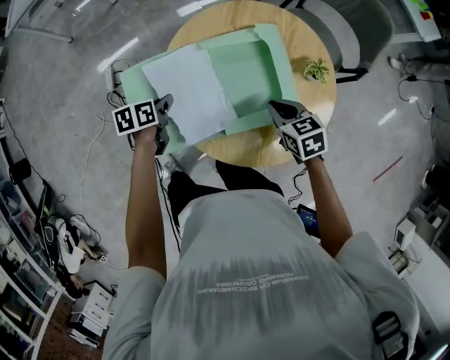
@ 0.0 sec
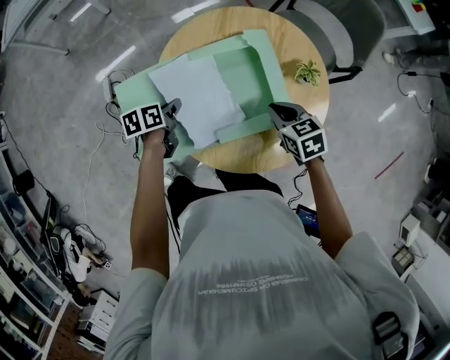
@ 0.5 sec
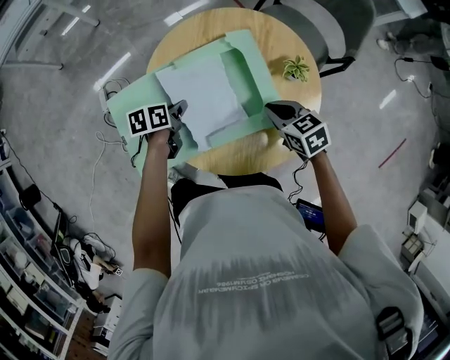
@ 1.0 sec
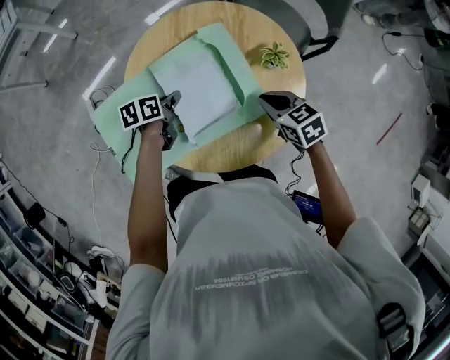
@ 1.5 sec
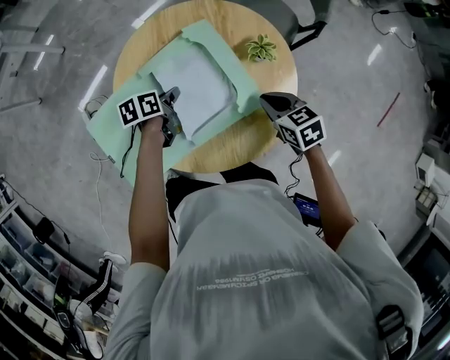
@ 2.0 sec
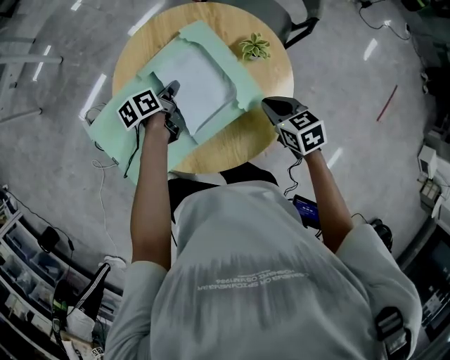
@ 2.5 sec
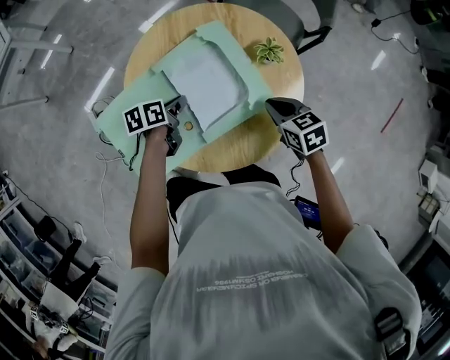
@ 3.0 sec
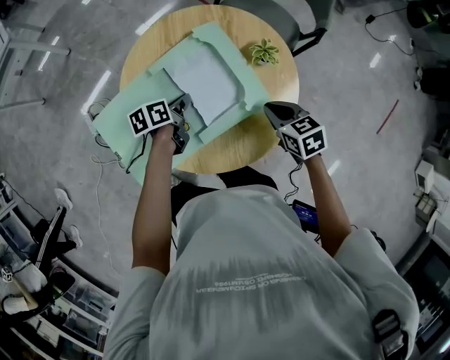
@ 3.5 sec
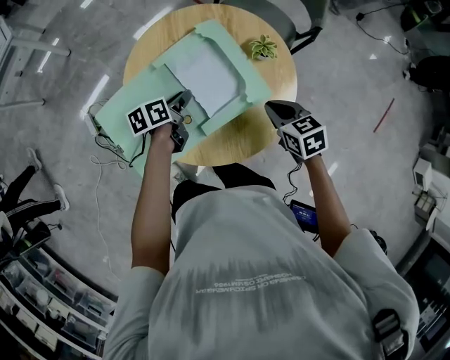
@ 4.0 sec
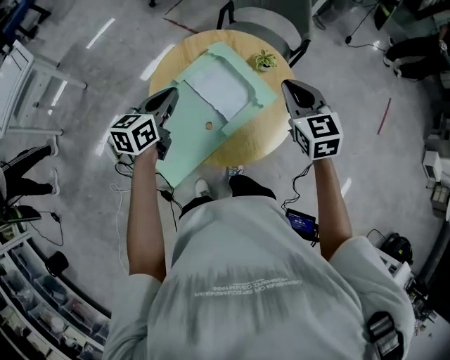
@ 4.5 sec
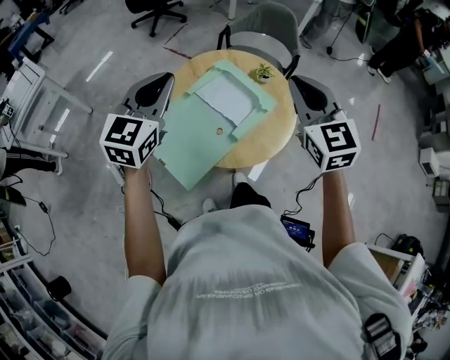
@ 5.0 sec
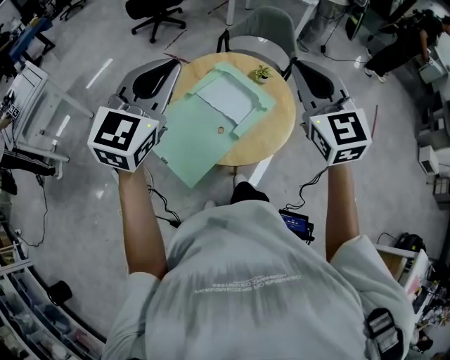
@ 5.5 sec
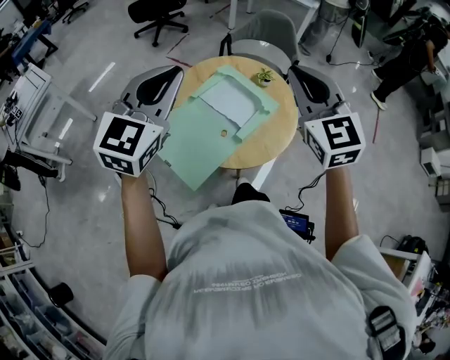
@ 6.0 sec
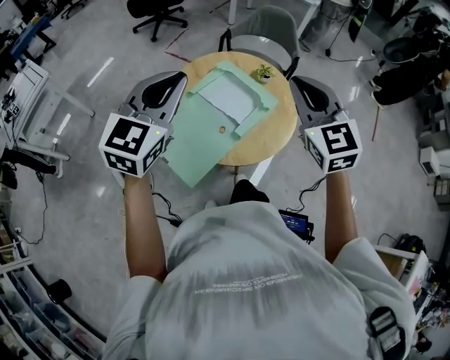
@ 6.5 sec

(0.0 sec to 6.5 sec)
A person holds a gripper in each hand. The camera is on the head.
0.0 sec - 2.0 sec: The left gripper goes about 20 cm to the right and forward. Meanwhile the right gripper travels to the right by about 10 cm.
2.0 sec - 4.5 sec: The two grippers go some 25 cm upward. The left gripper changes its angle by about 40 degrees, and opens and closes again; the right gripper rotates some 40 degrees.
4.5 sec - 6.5 sec: The two grippers go approximately 20 cm upward and backward. The left gripper rolls clockwise, seen from behind, by approximately 40 degrees.

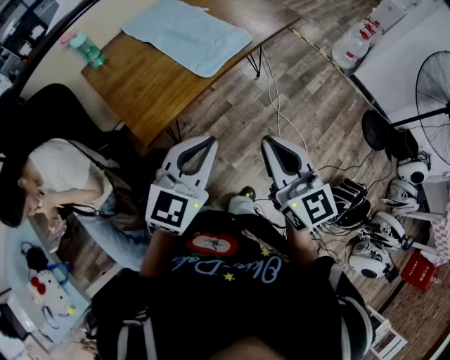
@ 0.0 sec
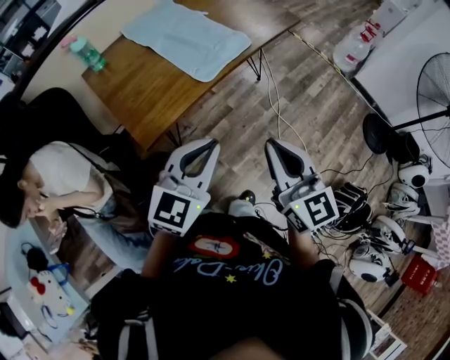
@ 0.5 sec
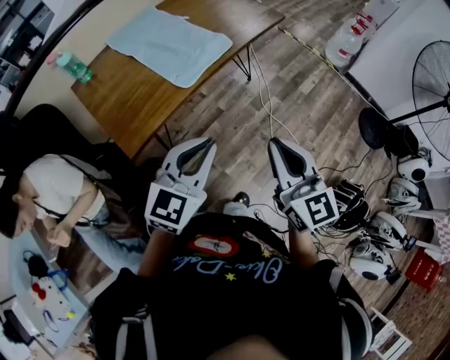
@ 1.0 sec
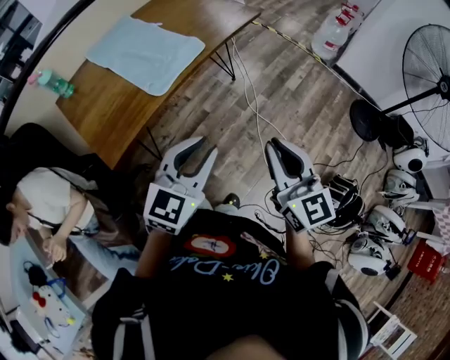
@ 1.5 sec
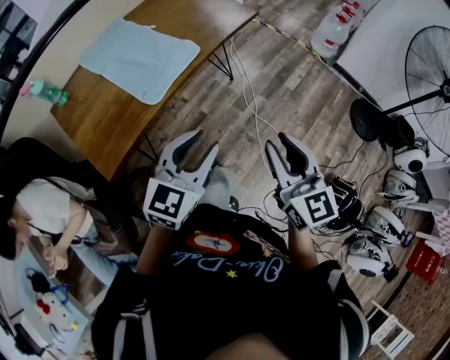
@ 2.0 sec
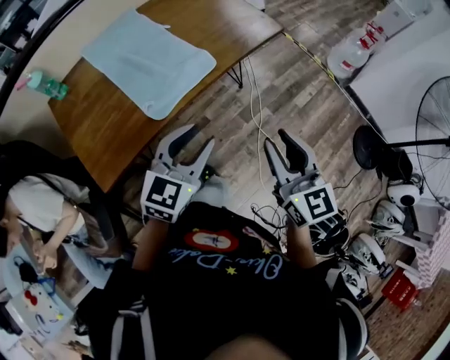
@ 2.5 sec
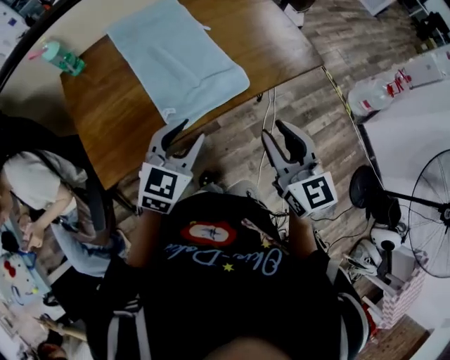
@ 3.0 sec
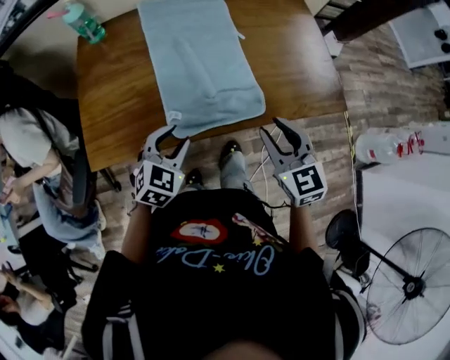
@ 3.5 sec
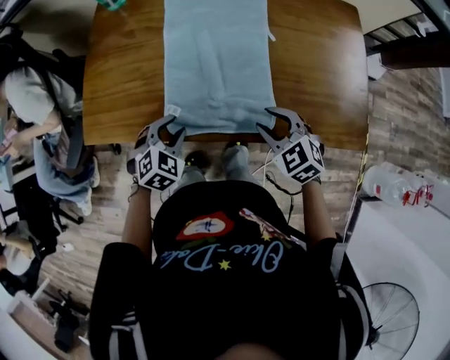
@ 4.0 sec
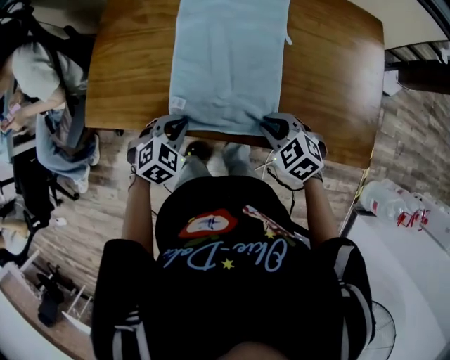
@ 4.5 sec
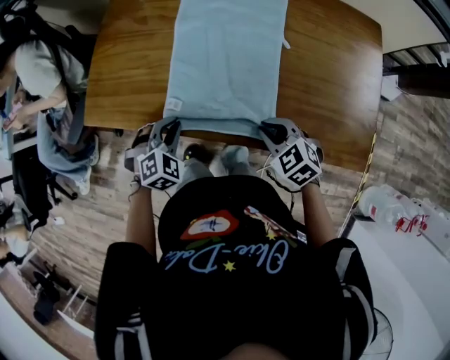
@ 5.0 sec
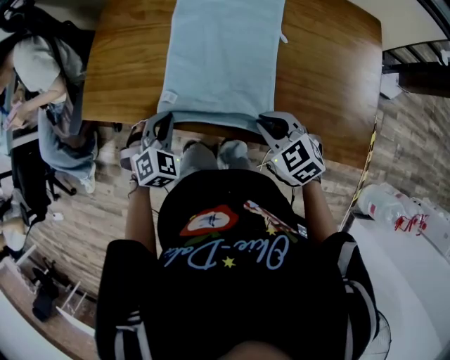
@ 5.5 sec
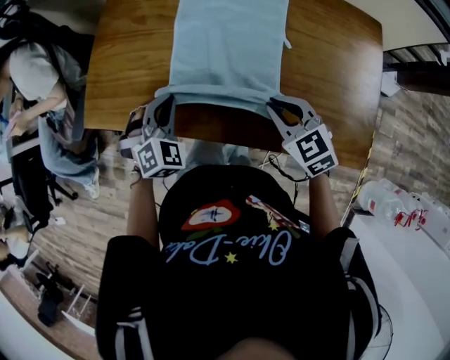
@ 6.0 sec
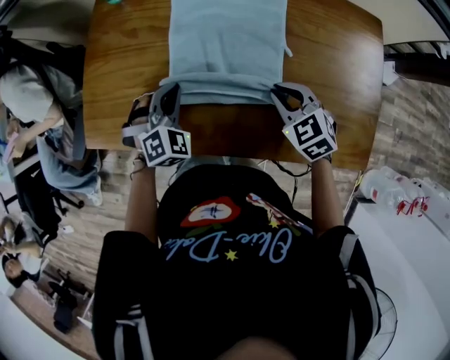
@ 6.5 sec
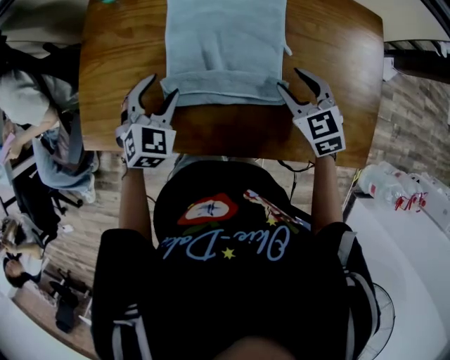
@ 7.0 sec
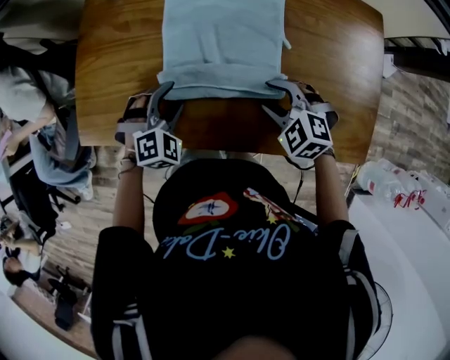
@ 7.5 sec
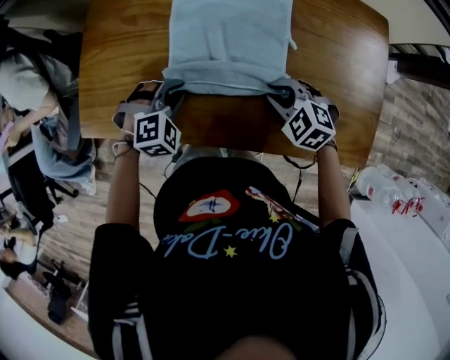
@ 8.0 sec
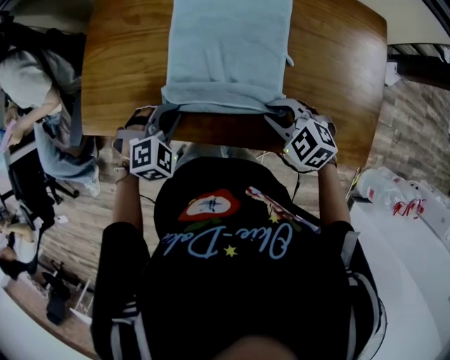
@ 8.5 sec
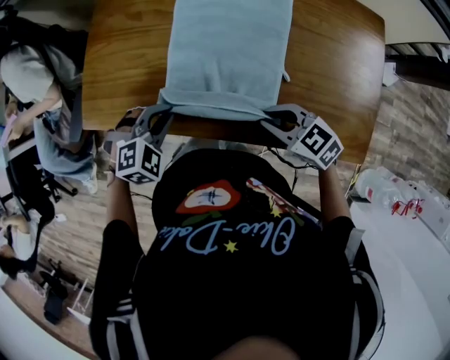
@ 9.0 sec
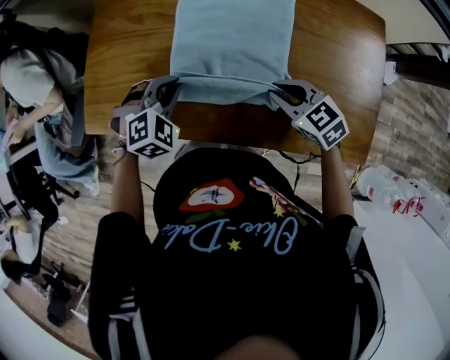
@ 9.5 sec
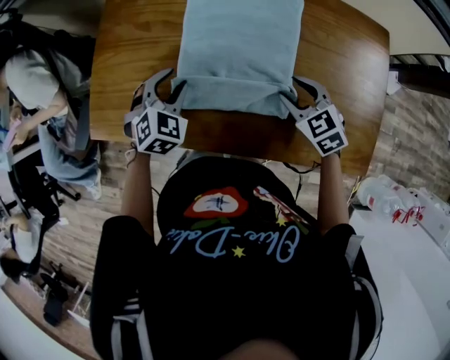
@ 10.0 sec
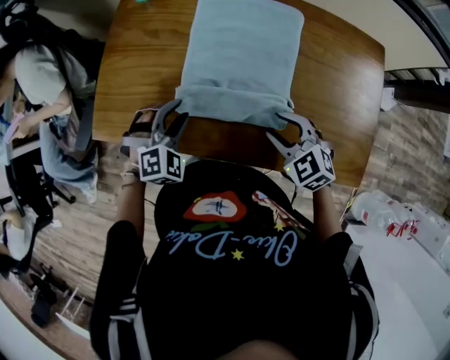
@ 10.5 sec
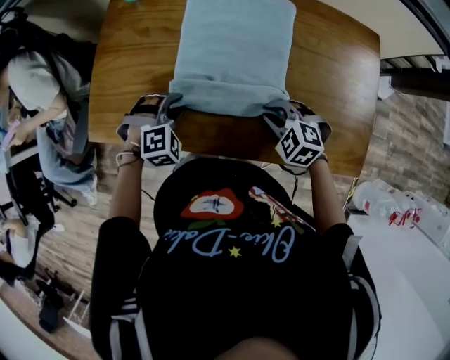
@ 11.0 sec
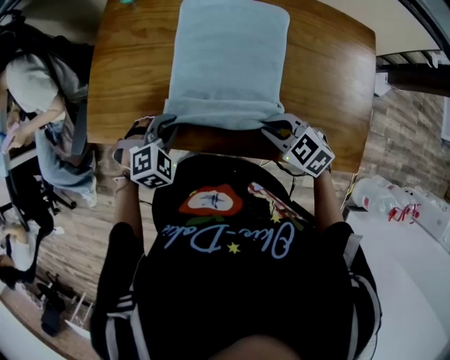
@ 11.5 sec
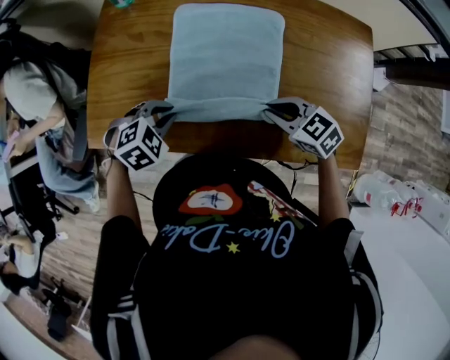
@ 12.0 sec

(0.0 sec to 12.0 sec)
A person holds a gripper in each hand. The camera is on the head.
0.0 sec - 2.0 sec: Both grippers move to the right and forward, roughly 20 cm. The left gripper opens.
2.0 sec - 4.0 sec: The right gripper ends up some 50 cm from where it was, and tilts its fingers roughly 40 degrees downward. The left gripper changes place by roughly 40 cm, and angles its fingers downward, by approximately 40 degrees.
4.0 sec - 6.0 sec: The grippers both shift forward by roughly 5 cm. The left gripper rotates some 20 degrees, and closes up; the right gripper closes up.
6.0 sec - 8.0 sec: Both grippers move downward, approximately 5 cm. The right gripper rotates about 30 degrees, and opens and closes again; the left gripper goes forward and returns, about 10 cm each way, swivels roughly 30 degrees, and opens and closes again.
8.0 sec - 10.0 sec: The left gripper is displaced forward by about 5 cm, rotates some 30 degrees, and opens up. The right gripper moves some 10 cm backward and comes back, swivels approximately 20 degrees, and opens its fingers.
10.0 sec - 12.0 sec: The left gripper travels backward by about 5 cm, swivels approximately 30 degrees, and closes up. Meanwhile the right gripper turns by approximately 20 degrees, and closes up.

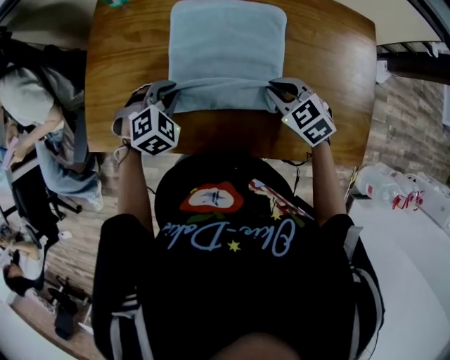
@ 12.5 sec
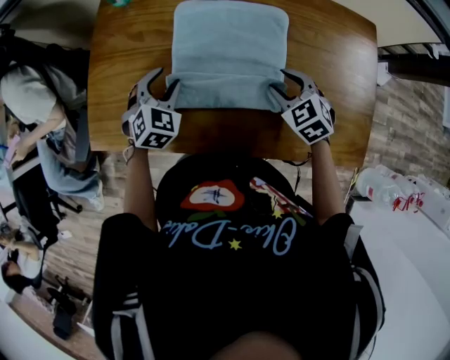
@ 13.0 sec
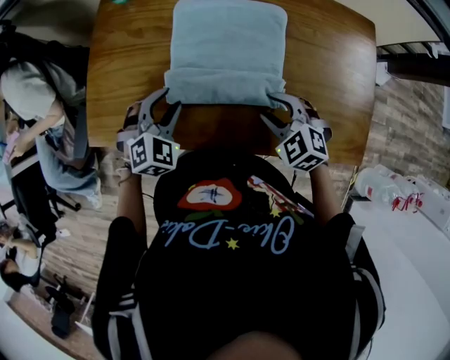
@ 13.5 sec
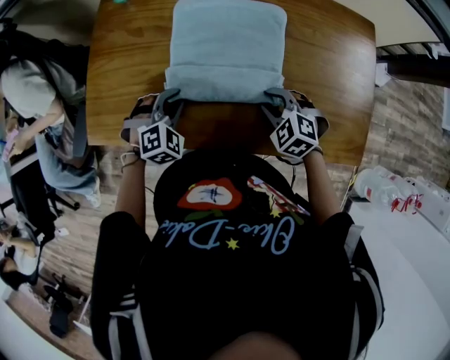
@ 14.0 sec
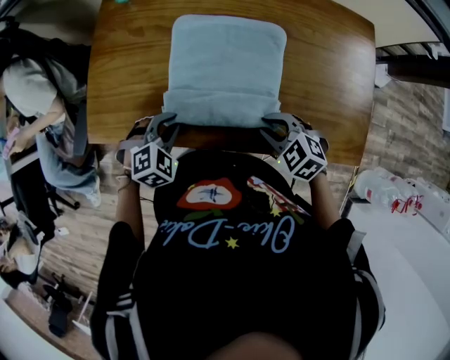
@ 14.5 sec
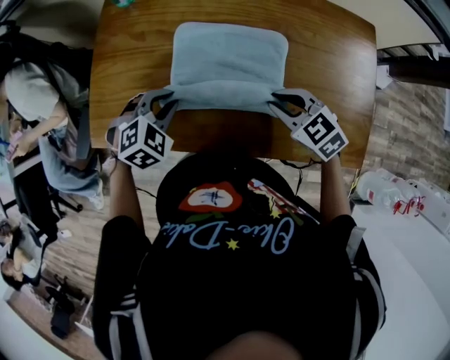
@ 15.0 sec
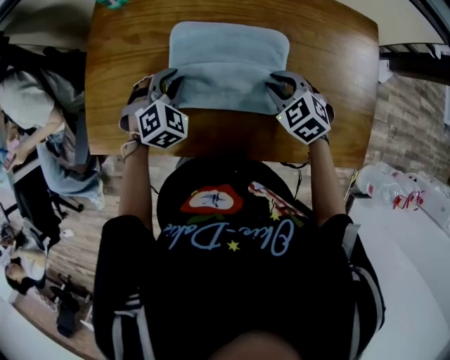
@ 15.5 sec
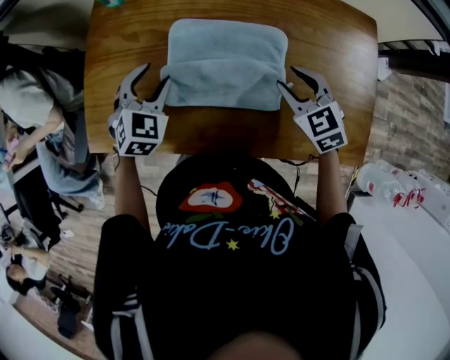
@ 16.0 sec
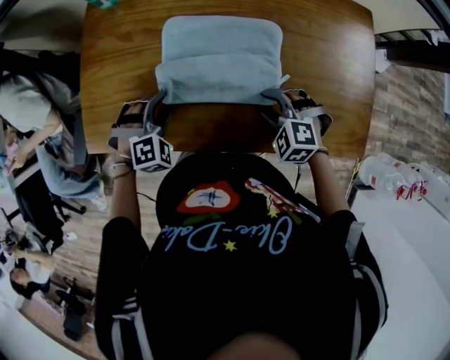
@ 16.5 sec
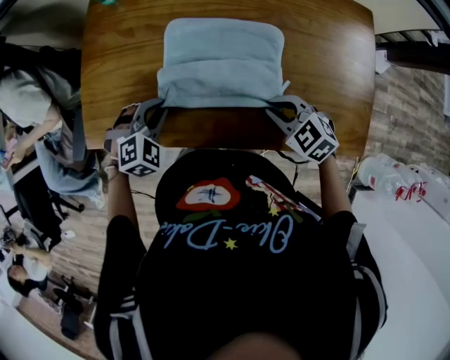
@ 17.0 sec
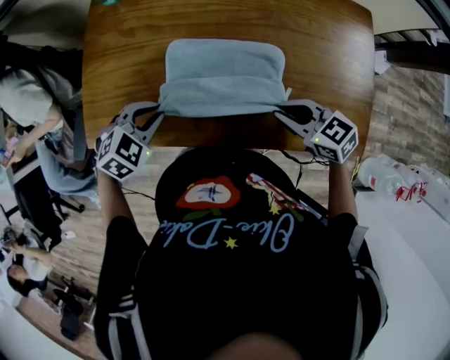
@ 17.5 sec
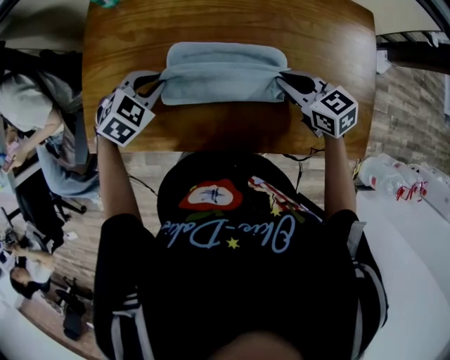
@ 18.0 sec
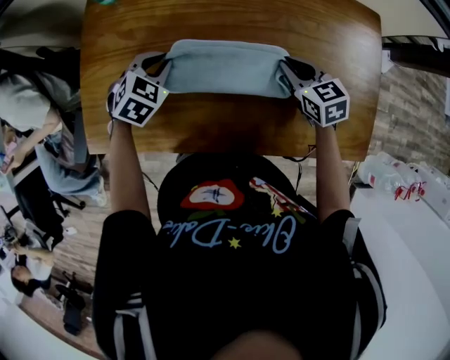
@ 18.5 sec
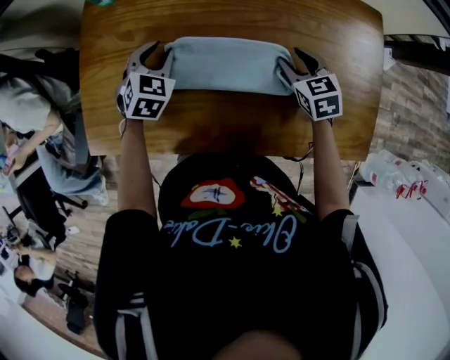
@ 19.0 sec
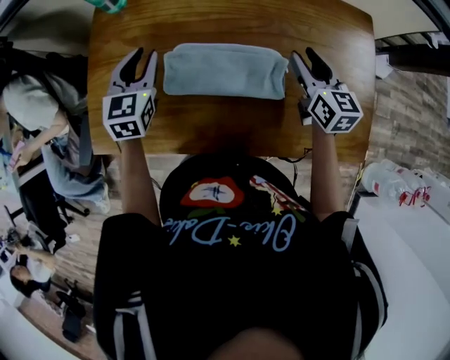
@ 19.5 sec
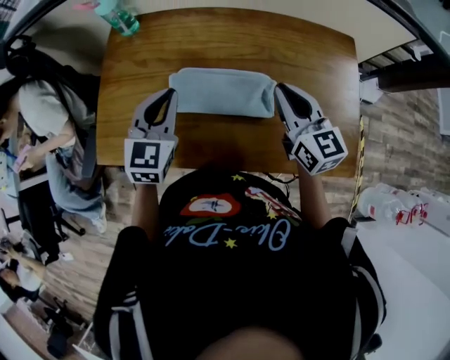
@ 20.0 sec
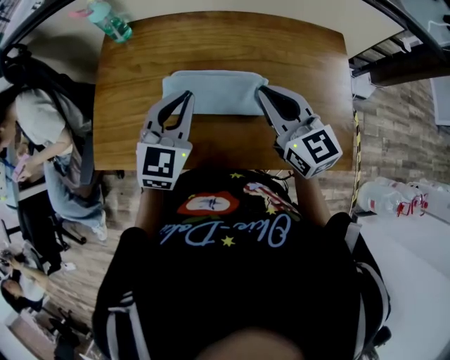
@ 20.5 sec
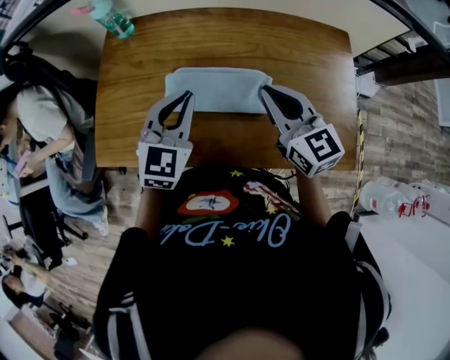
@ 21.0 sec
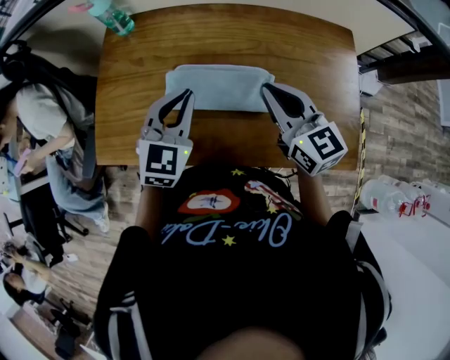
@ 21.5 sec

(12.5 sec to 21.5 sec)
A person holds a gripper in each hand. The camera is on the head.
12.5 sec - 14.5 sec: The grippers both shift backward by approximately 10 cm. The right gripper opens, then closes once more, while the left gripper opens and closes again.
14.5 sec - 17.0 sec: The left gripper moves approximately 15 cm forward and comes back, and opens, then closes again, while the right gripper moves some 15 cm forward and comes back.
17.0 sec - 19.5 sec: The left gripper goes approximately 20 cm forward and upward, and angles its fingers upward, by approximately 30 degrees; the right gripper goes about 20 cm forward, to the right and upward, rotates some 60 degrees, and opens its fingers.
19.5 sec - 21.5 sec: The right gripper moves upward, to the left and backward, some 15 cm, rotates some 20 degrees, and closes up. Meanwhile the left gripper heads backward, to the right and upward, covering roughly 15 cm, and closes its fingers.
